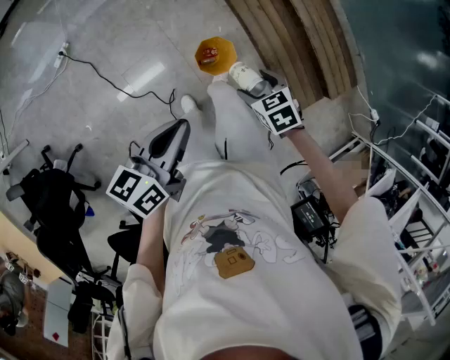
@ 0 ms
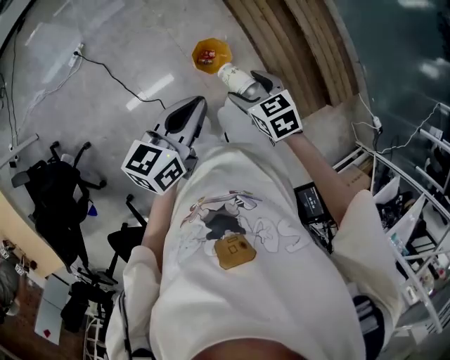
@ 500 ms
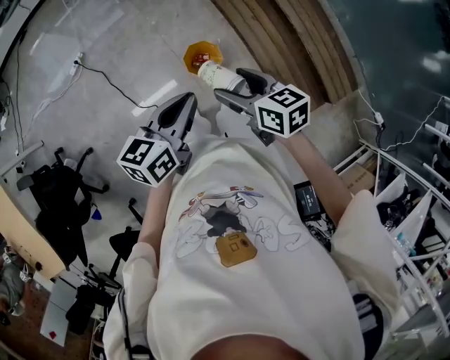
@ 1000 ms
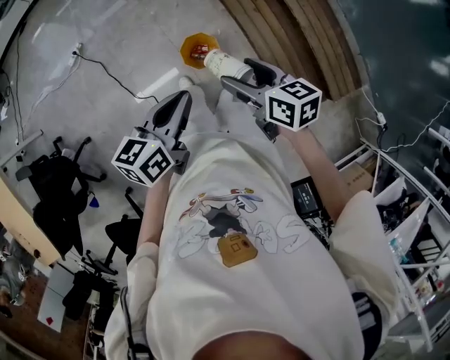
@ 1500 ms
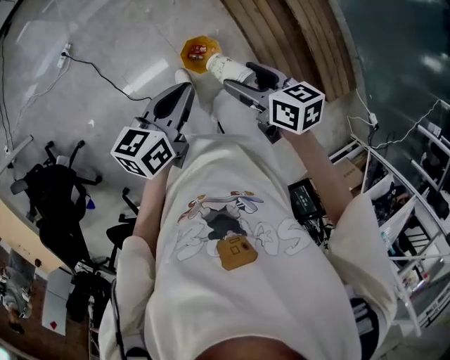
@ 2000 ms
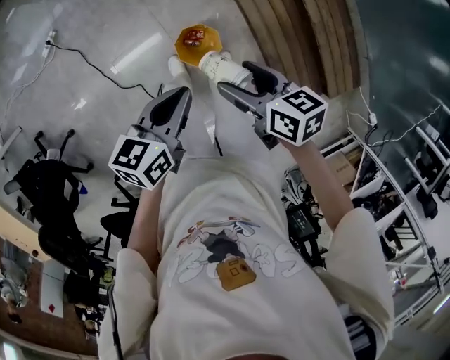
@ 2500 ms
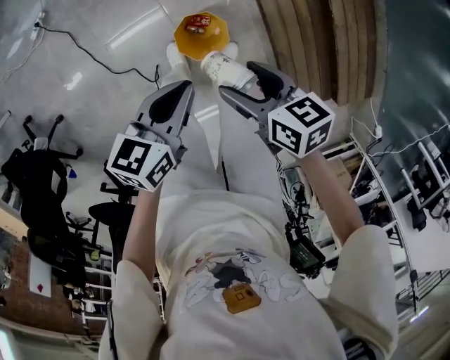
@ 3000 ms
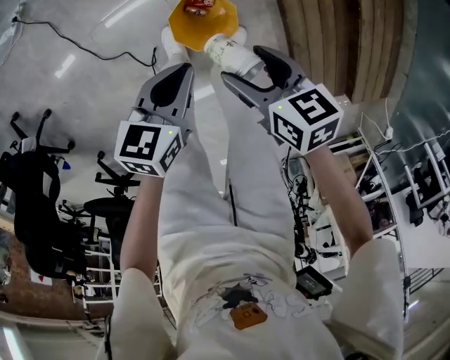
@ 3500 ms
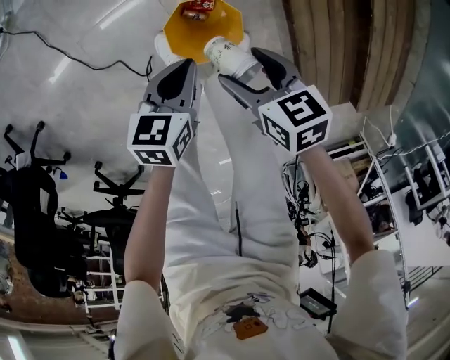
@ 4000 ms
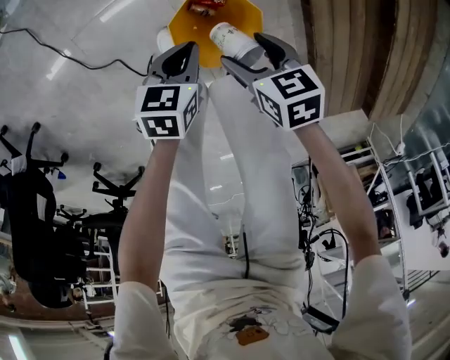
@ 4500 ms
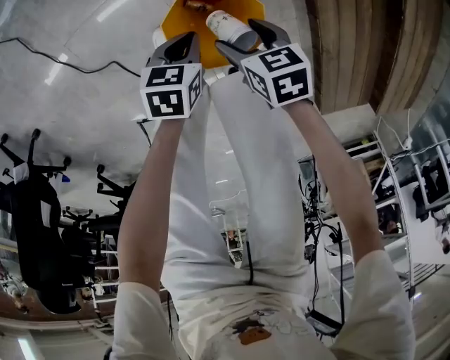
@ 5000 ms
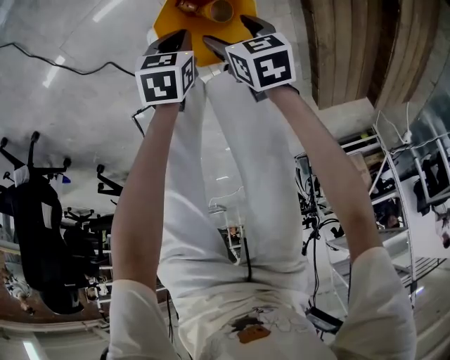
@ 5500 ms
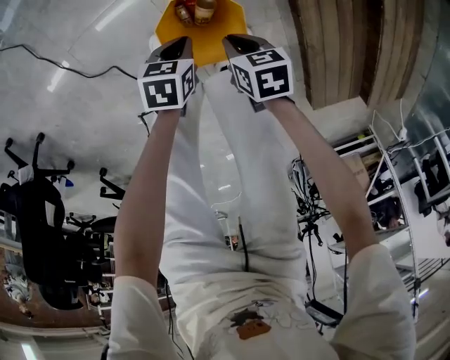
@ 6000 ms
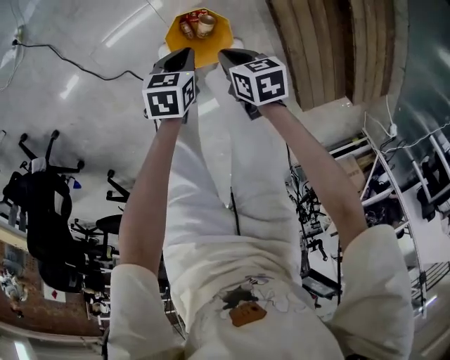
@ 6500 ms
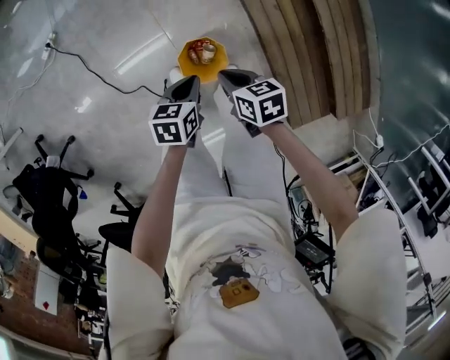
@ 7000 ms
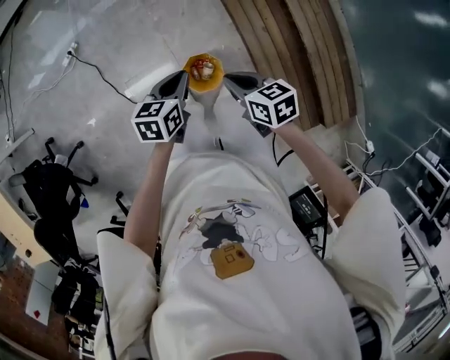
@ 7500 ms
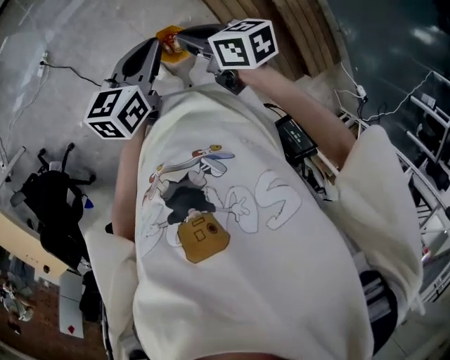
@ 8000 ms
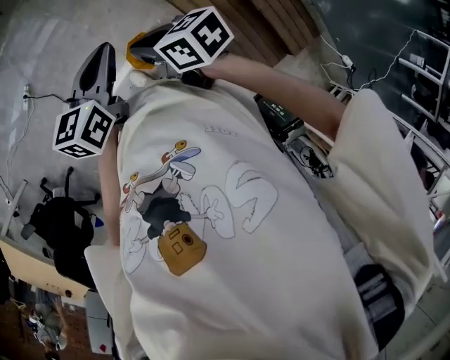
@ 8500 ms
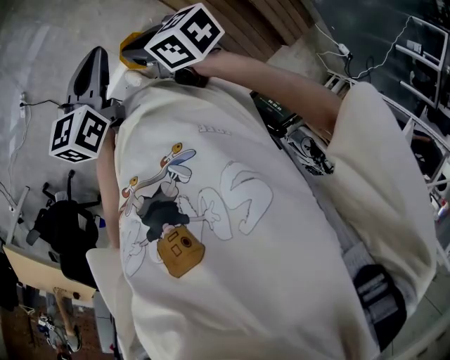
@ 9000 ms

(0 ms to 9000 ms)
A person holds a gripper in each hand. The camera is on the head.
0 ms - 2000 ms: The left gripper shifts about 15 cm forward and to the right. Meanwhile the right gripper is displaced upward and forward by approximately 15 cm, and swivels about 40 degrees.
2000 ms - 4500 ms: The grippers both shift downward by some 70 cm. The right gripper turns by about 30 degrees. The left gripper tilts its fingers approximately 30 degrees downward.
4500 ms - 7000 ms: Both grippers move upward, approximately 35 cm. The right gripper closes.
7000 ms - 9000 ms: The grippers both shift upward by roughly 35 cm. The left gripper rotates about 30 degrees.

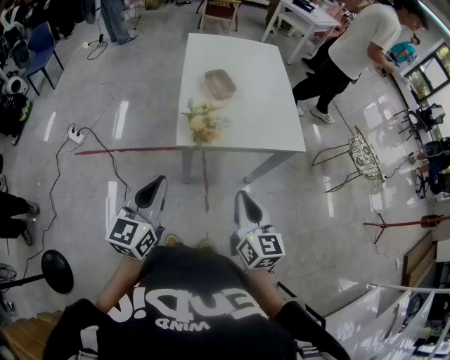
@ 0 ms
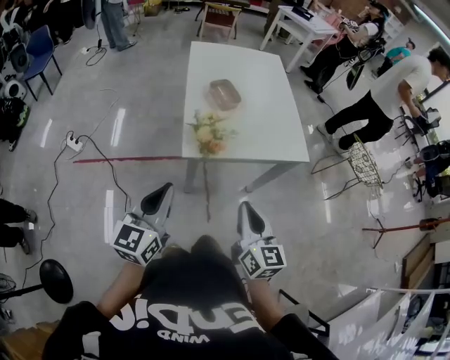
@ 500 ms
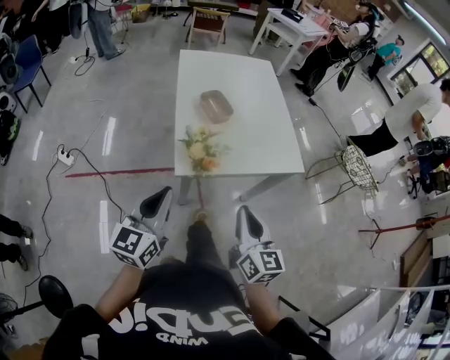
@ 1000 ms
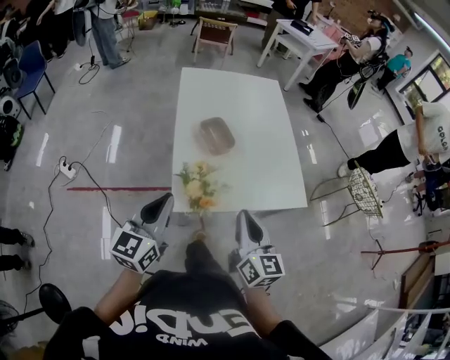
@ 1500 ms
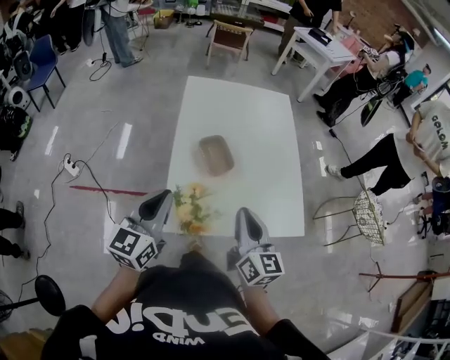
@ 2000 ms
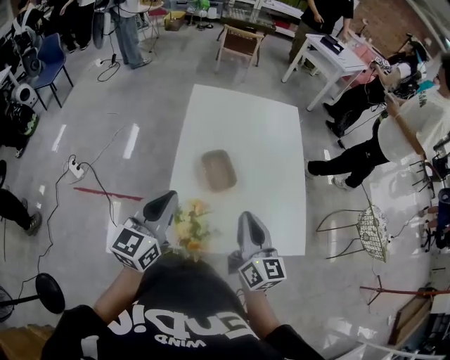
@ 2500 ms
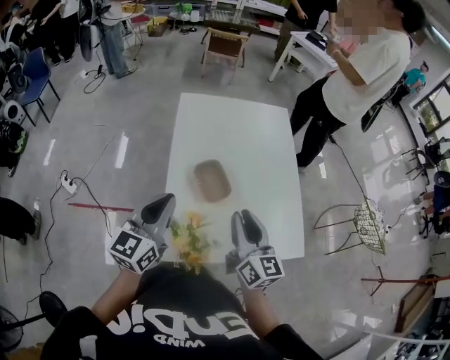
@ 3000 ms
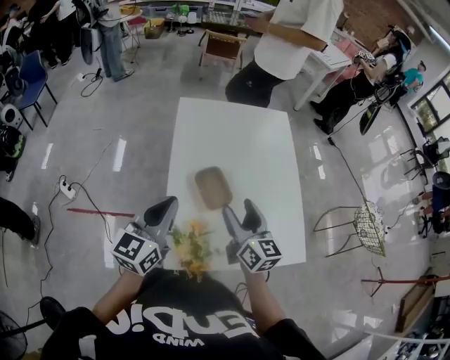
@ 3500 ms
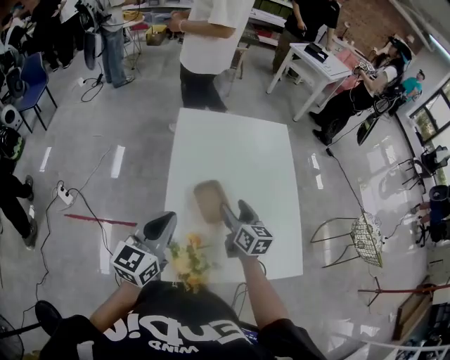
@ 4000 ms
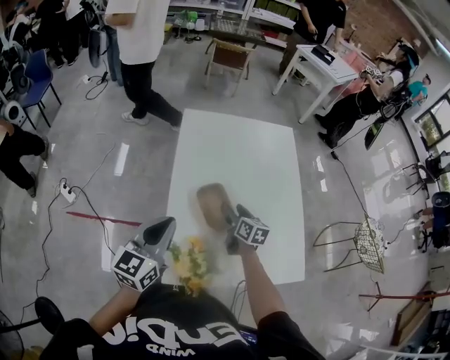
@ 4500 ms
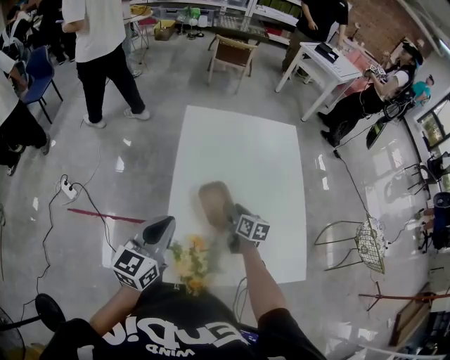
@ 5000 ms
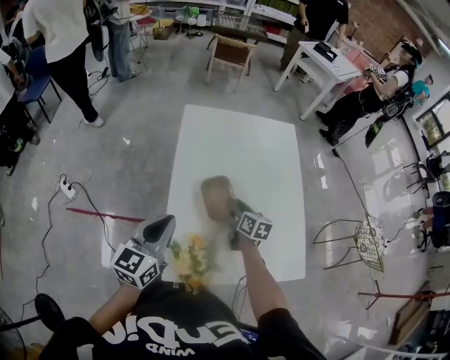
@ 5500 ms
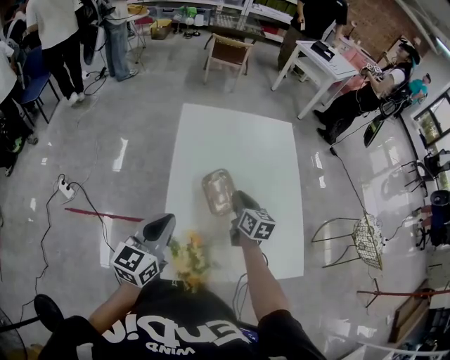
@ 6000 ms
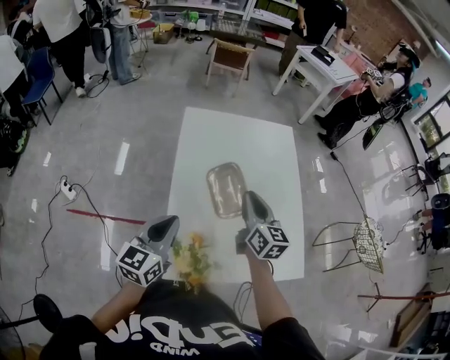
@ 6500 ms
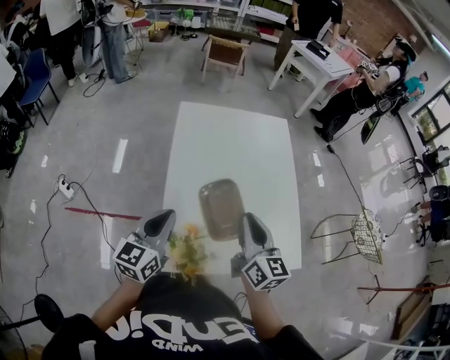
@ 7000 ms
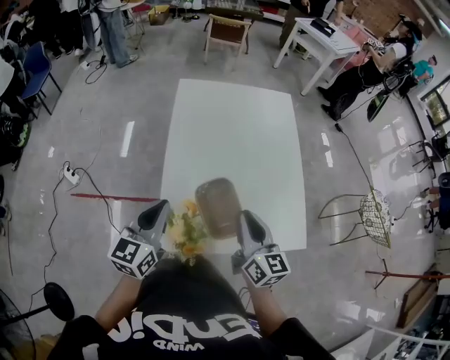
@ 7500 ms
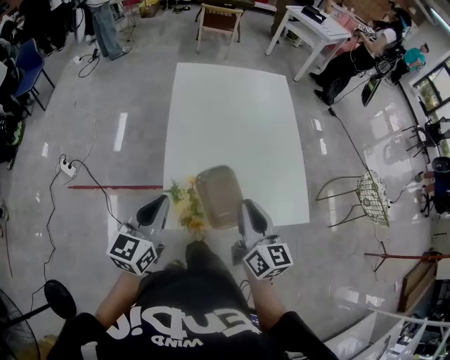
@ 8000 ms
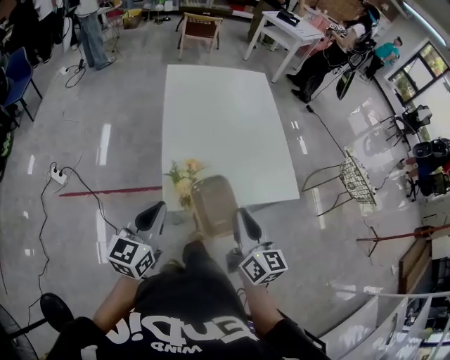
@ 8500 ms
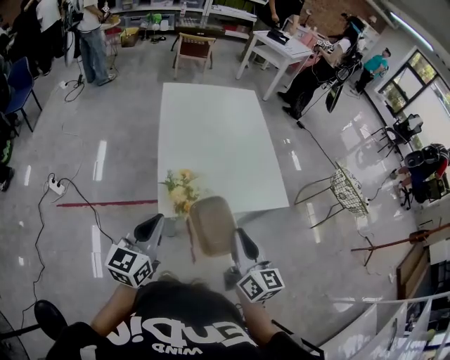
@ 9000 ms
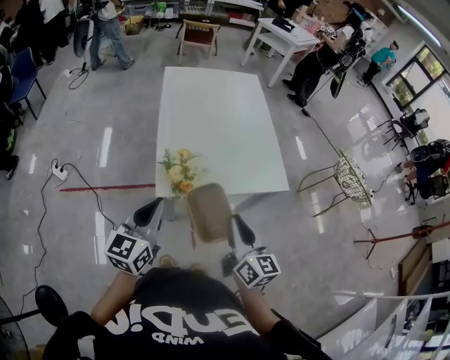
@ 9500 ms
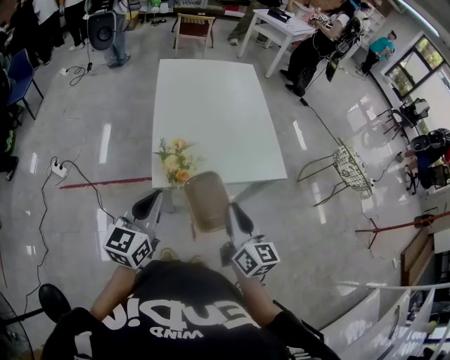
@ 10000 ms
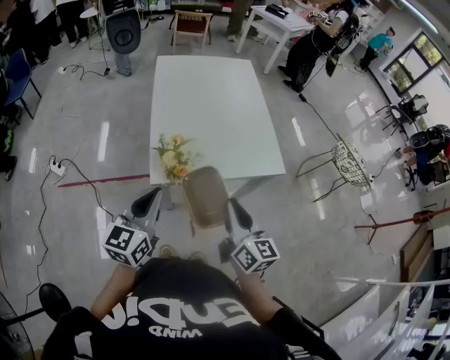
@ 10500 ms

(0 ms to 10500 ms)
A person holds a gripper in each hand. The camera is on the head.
0 ms - 2000 ms: Both grippers travel together forward, approximately 35 cm.
2000 ms - 4000 ms: The right gripper travels forward by roughly 25 cm, and opens up, while the left gripper is displaced forward by approximately 15 cm.
4000 ms - 6500 ms: The right gripper is displaced upward by roughly 10 cm, and closes up.
6500 ms - 8500 ms: Both grippers travel together backward, approximately 35 cm.
8500 ms - 10500 ms: Both grippers travel together backward and to the right, some 15 cm.

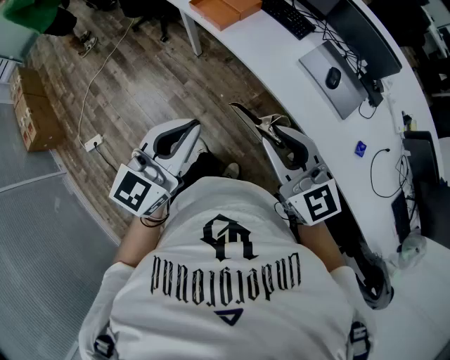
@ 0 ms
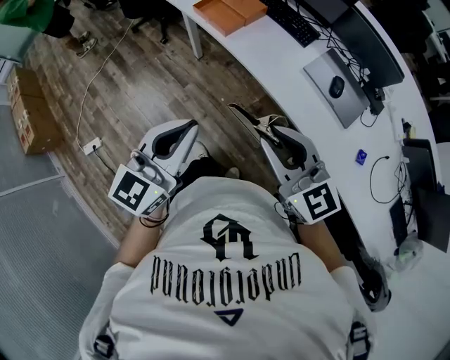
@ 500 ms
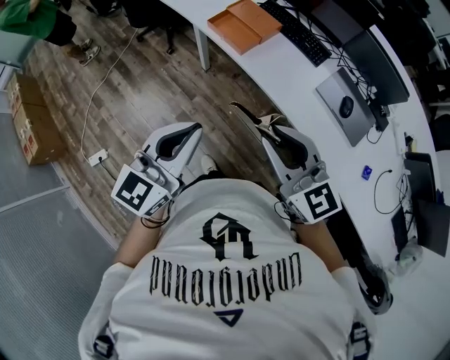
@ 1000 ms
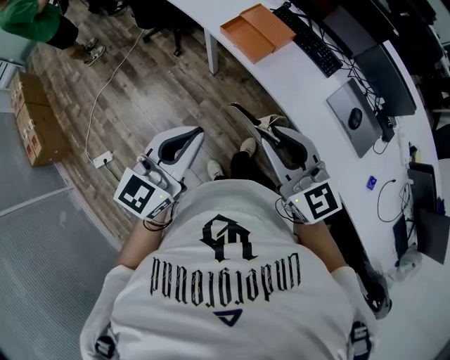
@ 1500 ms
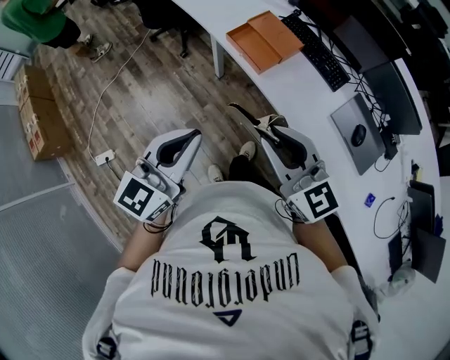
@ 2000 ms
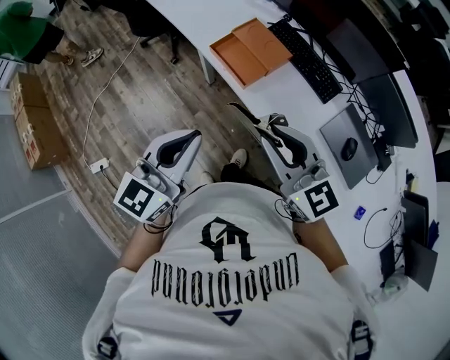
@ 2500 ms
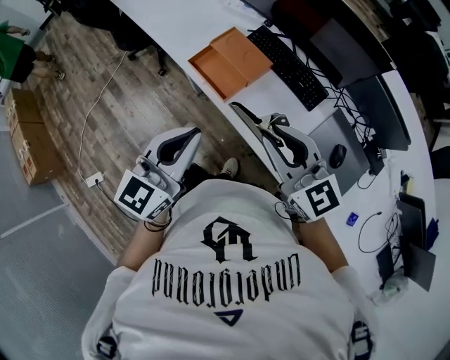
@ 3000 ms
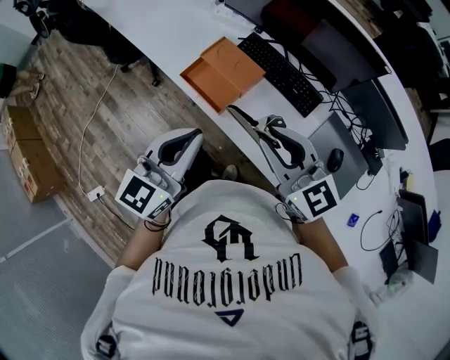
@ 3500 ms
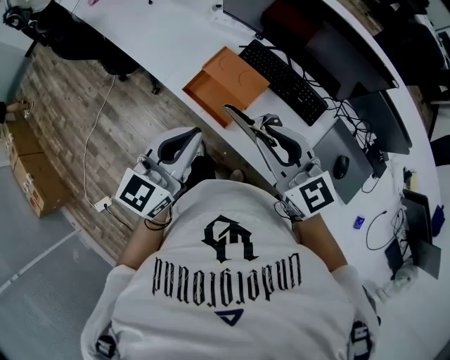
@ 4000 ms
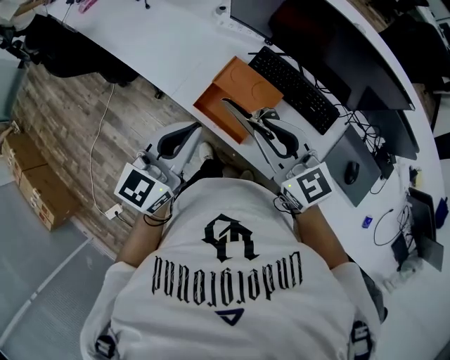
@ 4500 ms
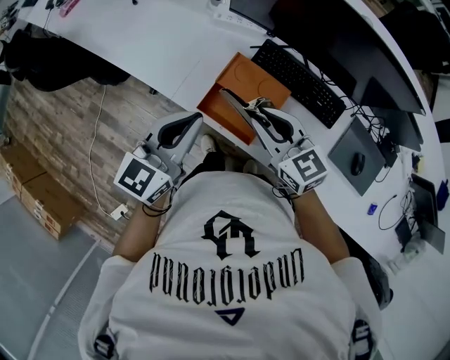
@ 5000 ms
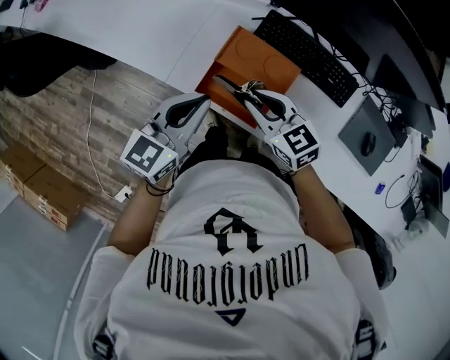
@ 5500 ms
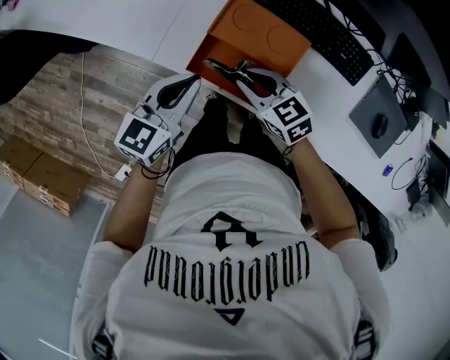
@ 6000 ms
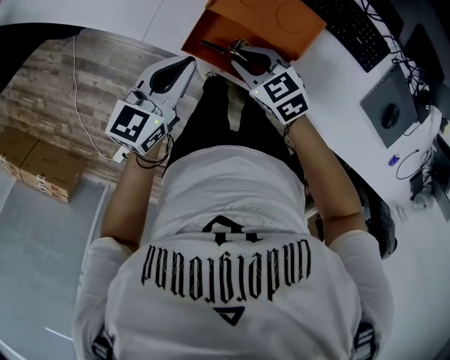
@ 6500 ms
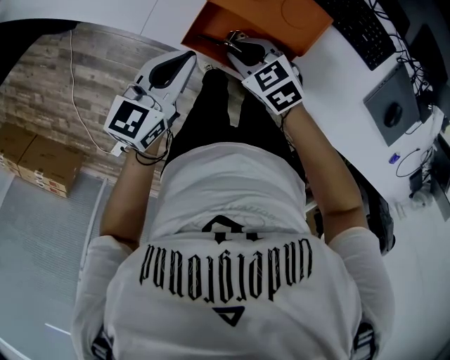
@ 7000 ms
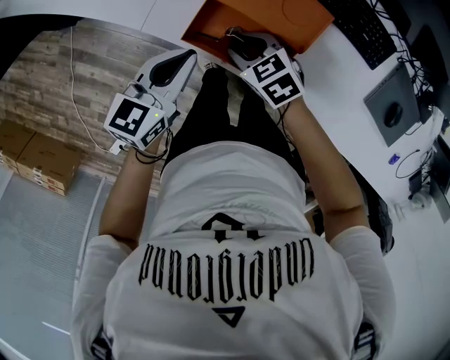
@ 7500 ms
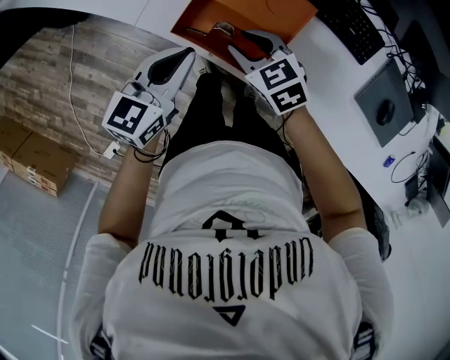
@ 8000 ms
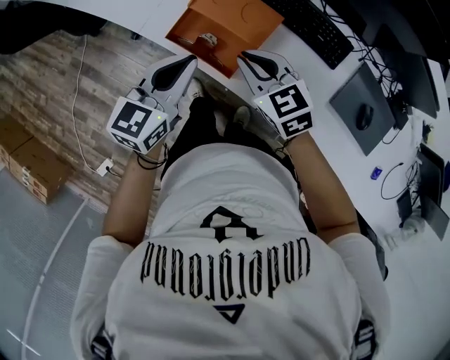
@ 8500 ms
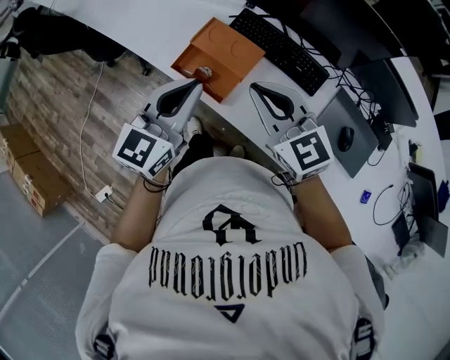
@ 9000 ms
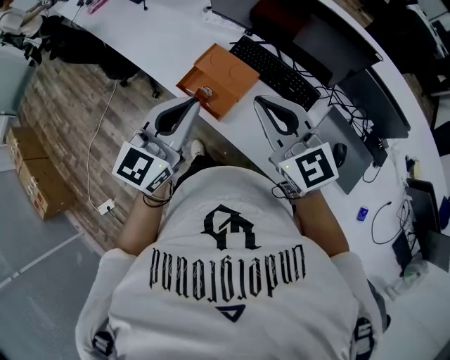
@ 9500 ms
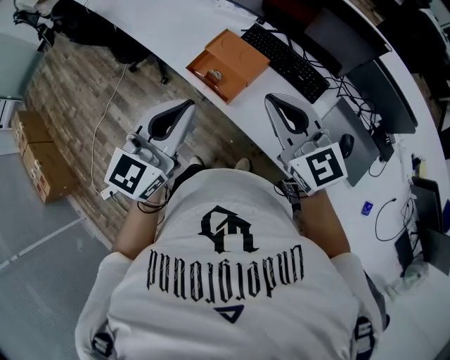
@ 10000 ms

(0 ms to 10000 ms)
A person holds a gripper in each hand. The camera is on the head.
0 ms - 2000 ms: Both grippers travel together forward and to the left, roughly 25 cm.
2000 ms - 4000 ms: Both grippers move forward and to the right, approximately 30 cm.
4000 ms - 6000 ms: The right gripper shifts roughly 35 cm downward, forward and to the left, and rotates some 30 degrees. The left gripper shifts about 30 cm downward and forward, and changes its angle by approximately 30 degrees.
6000 ms - 8000 ms: The left gripper moves roughly 5 cm; the right gripper moves about 10 cm downward and comes back.
8000 ms - 10000 ms: The two grippers go some 40 cm upward and backward. The right gripper points its fingers some 40 degrees further upward, and closes, while the left gripper turns by some 30 degrees.
